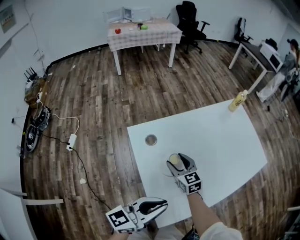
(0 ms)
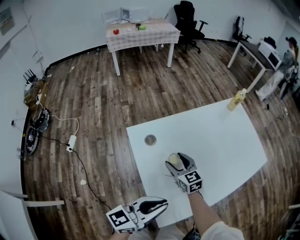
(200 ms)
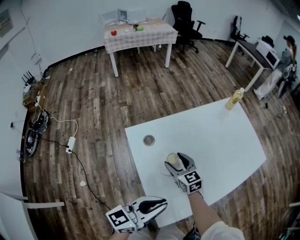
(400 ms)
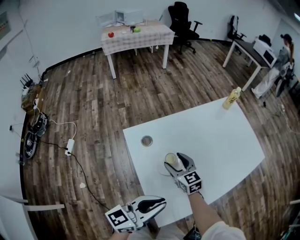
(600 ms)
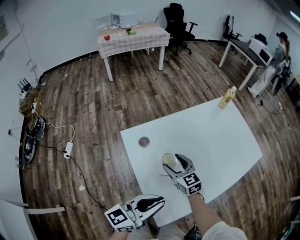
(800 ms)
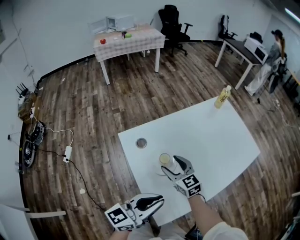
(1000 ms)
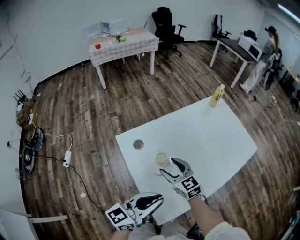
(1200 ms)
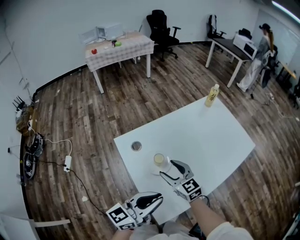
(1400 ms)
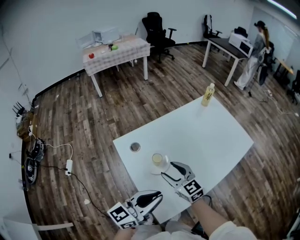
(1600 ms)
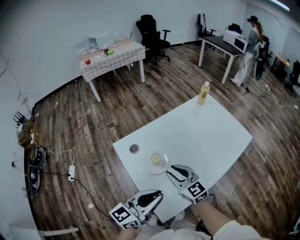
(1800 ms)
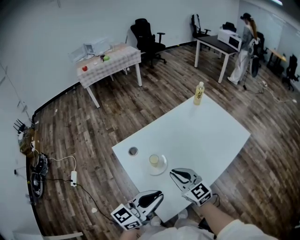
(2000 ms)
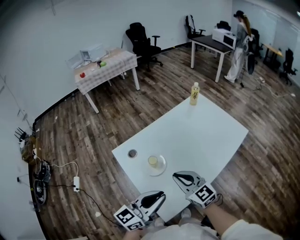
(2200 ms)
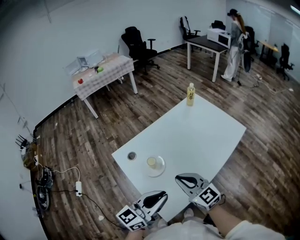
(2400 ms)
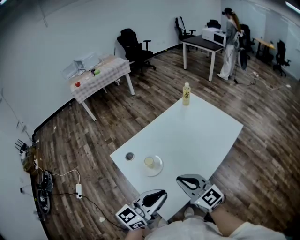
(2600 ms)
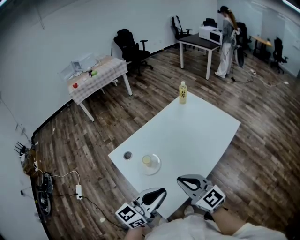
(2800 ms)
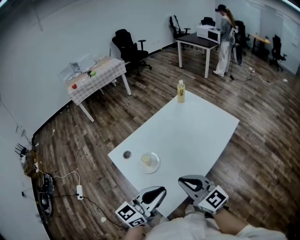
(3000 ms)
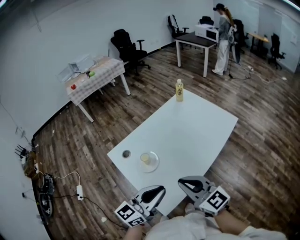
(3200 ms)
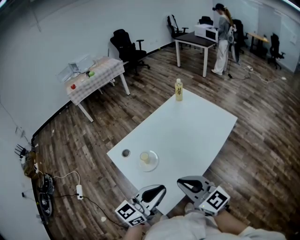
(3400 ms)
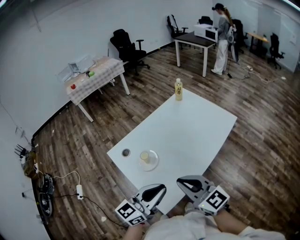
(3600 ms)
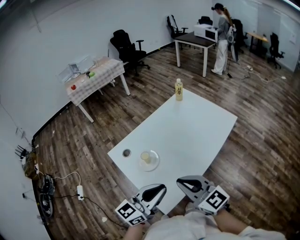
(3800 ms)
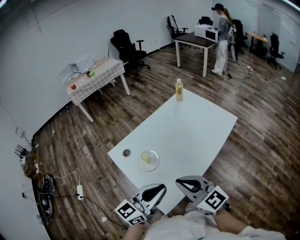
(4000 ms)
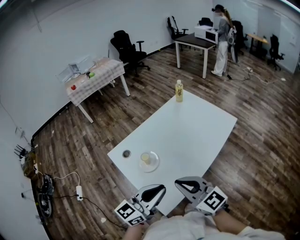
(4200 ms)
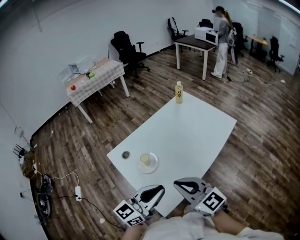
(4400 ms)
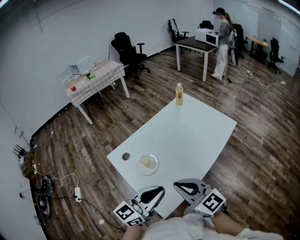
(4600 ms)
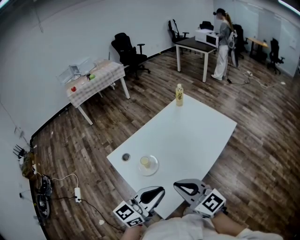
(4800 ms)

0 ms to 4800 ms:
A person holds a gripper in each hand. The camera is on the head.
0 ms to 1600 ms: The right gripper heads upward and backward, covering some 10 cm.
1600 ms to 3200 ms: The right gripper heads backward, upward and to the right, covering about 20 cm, and closes its fingers. Meanwhile the left gripper travels to the right by about 5 cm.
3200 ms to 4800 ms: The grippers make only small movements.

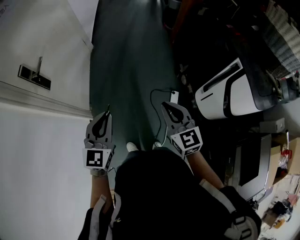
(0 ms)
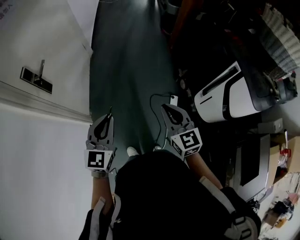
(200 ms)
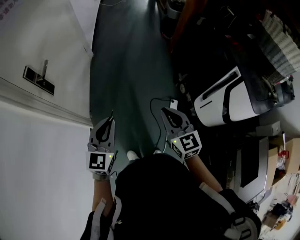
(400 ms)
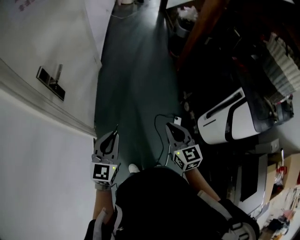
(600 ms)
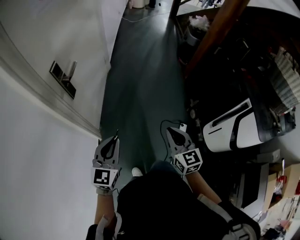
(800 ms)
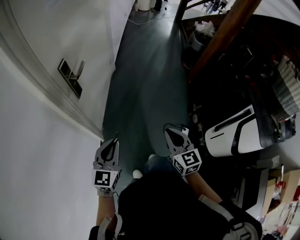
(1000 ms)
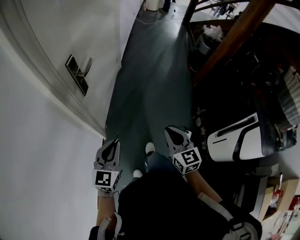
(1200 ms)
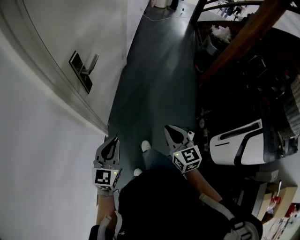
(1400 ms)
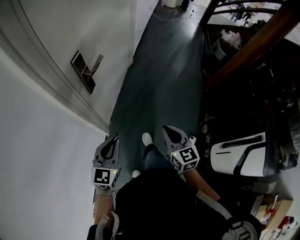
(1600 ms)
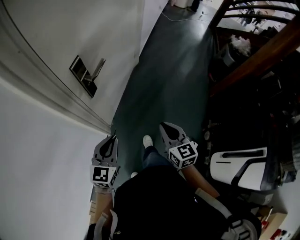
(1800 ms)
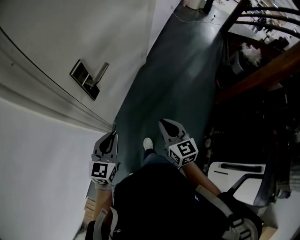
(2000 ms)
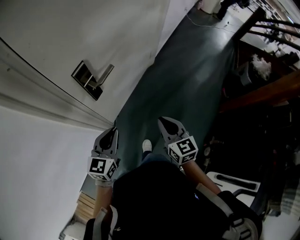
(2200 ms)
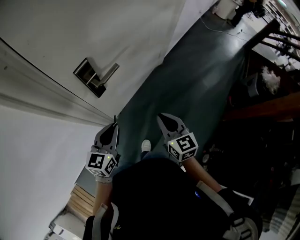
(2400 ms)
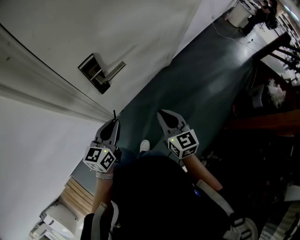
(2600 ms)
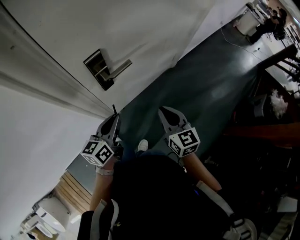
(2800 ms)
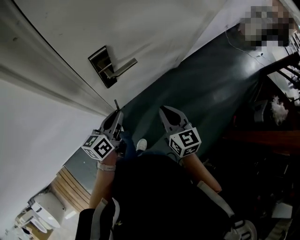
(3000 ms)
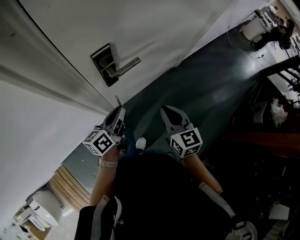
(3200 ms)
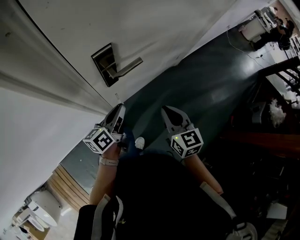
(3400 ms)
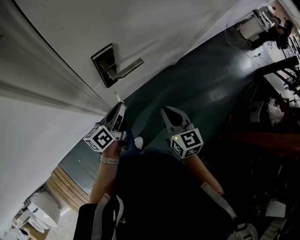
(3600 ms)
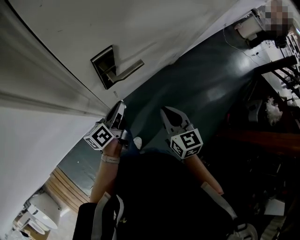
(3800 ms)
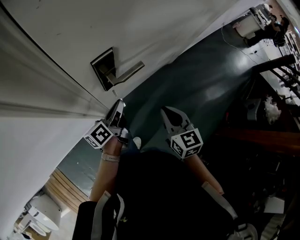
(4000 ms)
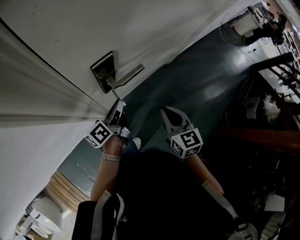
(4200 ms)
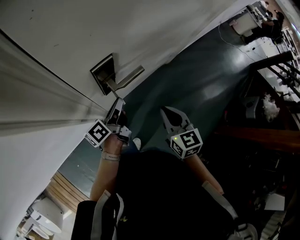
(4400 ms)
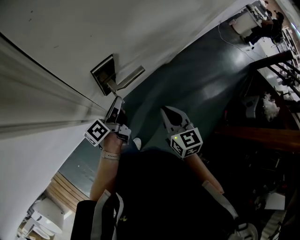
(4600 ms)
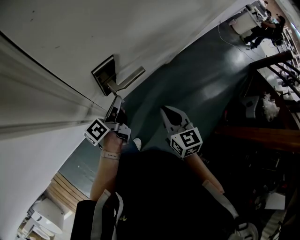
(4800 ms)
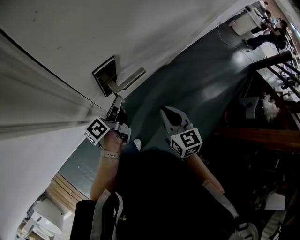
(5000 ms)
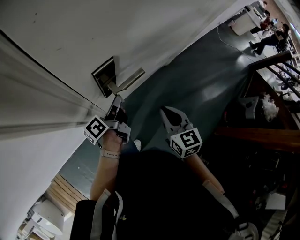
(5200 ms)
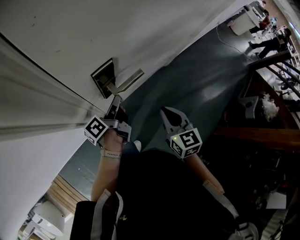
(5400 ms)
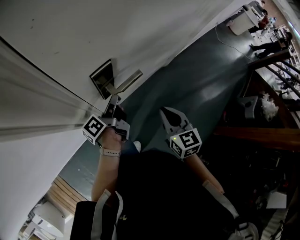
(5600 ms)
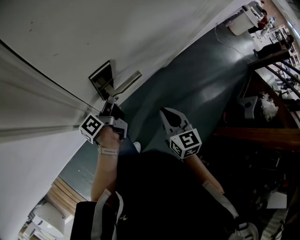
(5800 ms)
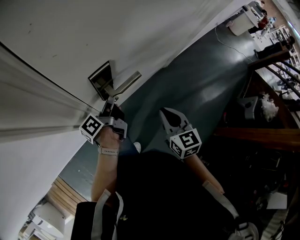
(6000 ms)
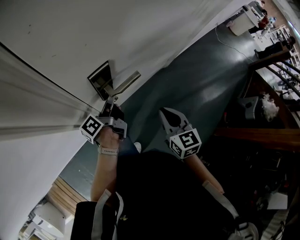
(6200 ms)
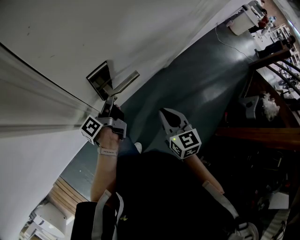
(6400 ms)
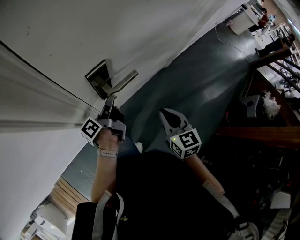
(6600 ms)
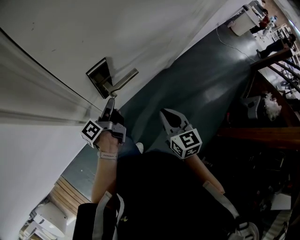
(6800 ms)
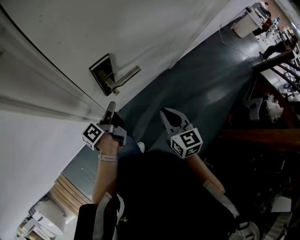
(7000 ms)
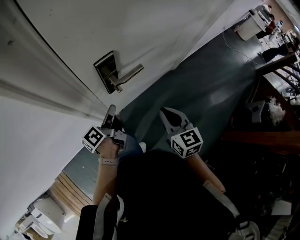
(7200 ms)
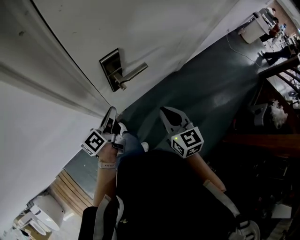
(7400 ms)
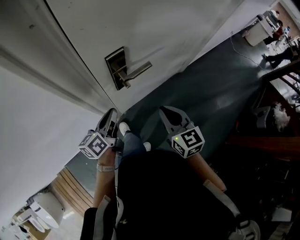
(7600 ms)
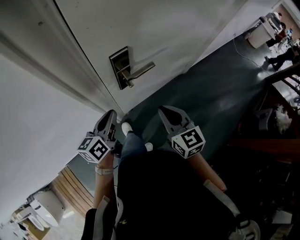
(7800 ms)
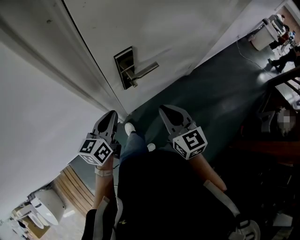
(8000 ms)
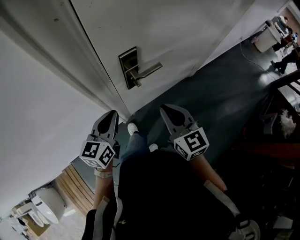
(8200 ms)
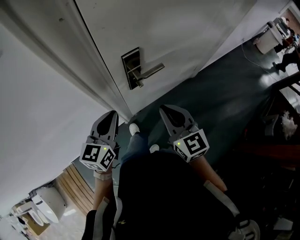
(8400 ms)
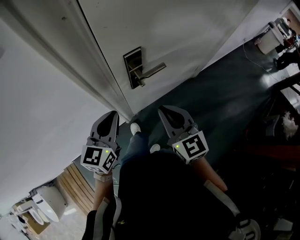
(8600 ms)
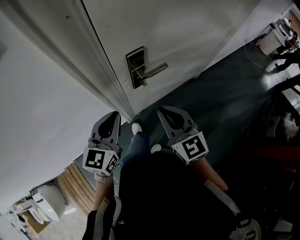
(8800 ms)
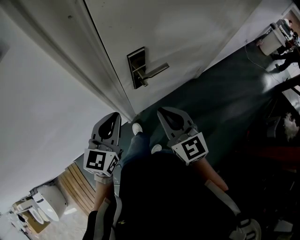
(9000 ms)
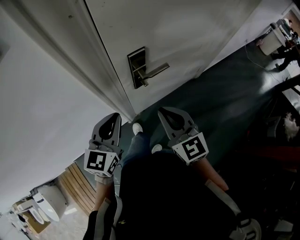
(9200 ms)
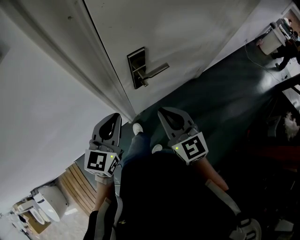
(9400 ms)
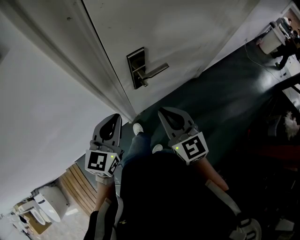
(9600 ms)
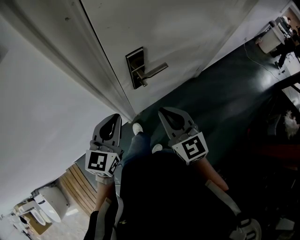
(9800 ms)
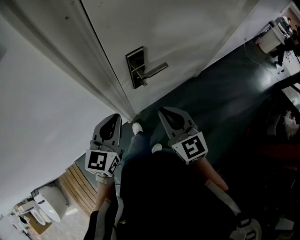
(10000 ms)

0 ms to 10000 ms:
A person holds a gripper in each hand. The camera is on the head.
0 ms to 1400 ms: The grippers both shift to the left by about 25 cm.
1400 ms to 2800 ms: The right gripper moves approximately 35 cm, and rotates approximately 40 degrees, while the left gripper moves some 25 cm, and changes its angle by about 50 degrees.
2800 ms to 4200 ms: The left gripper moves forward and downward, approximately 15 cm, and turns by about 40 degrees; the right gripper shifts about 5 cm forward.
4200 ms to 5800 ms: The left gripper heads forward, covering approximately 5 cm.
5800 ms to 7200 ms: The left gripper moves backward, some 10 cm.
7200 ms to 8600 ms: The right gripper goes approximately 15 cm upward and to the left. The left gripper heads upward and backward, covering roughly 20 cm, and rolls clockwise, seen from behind, by approximately 70 degrees.
8600 ms to 10000 ms: The grippers move only a little.

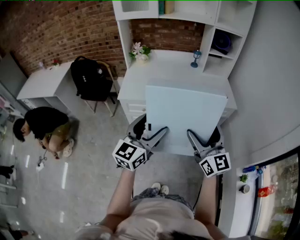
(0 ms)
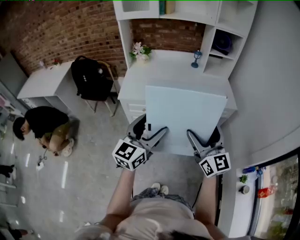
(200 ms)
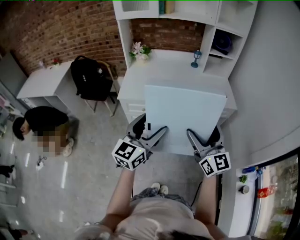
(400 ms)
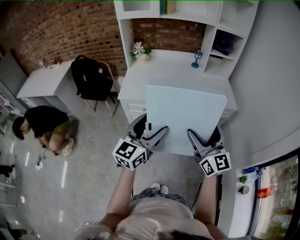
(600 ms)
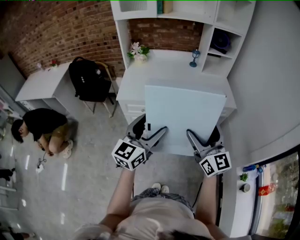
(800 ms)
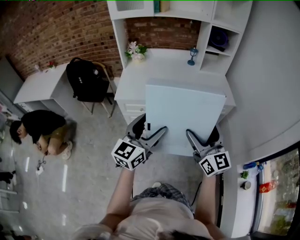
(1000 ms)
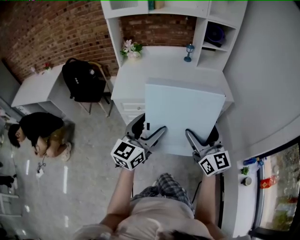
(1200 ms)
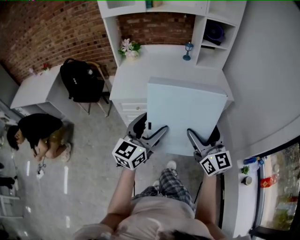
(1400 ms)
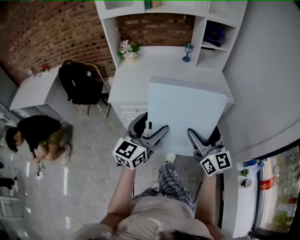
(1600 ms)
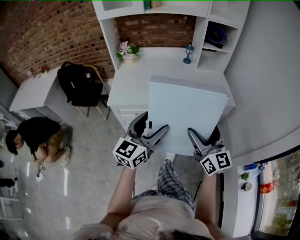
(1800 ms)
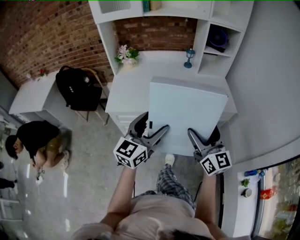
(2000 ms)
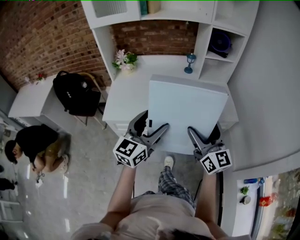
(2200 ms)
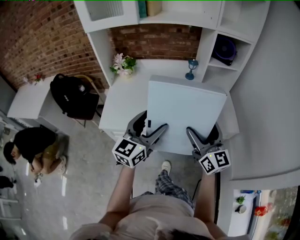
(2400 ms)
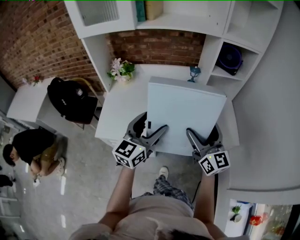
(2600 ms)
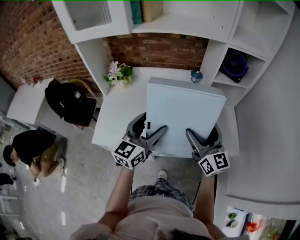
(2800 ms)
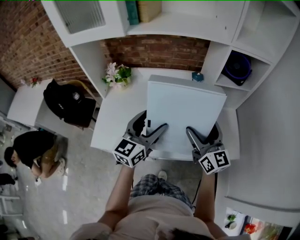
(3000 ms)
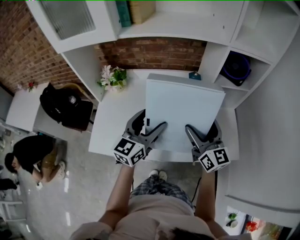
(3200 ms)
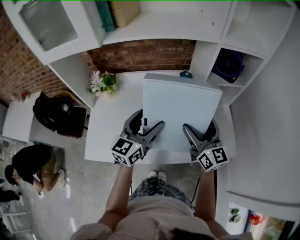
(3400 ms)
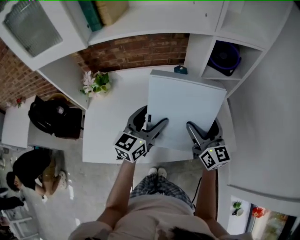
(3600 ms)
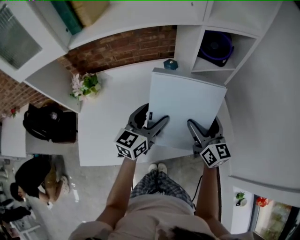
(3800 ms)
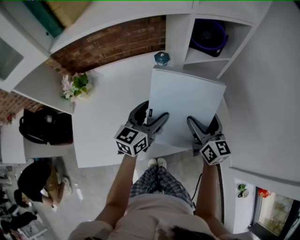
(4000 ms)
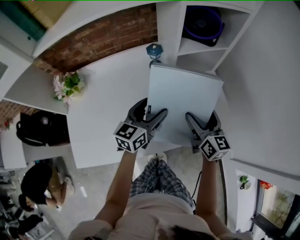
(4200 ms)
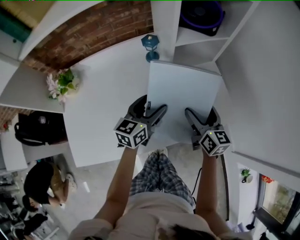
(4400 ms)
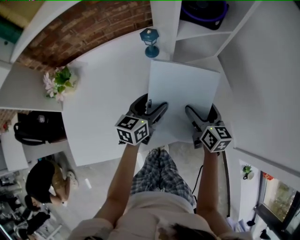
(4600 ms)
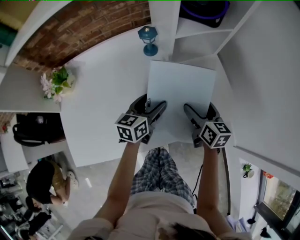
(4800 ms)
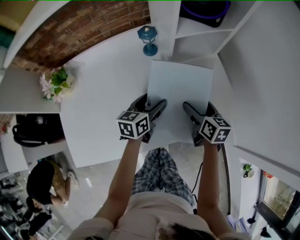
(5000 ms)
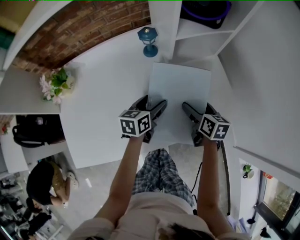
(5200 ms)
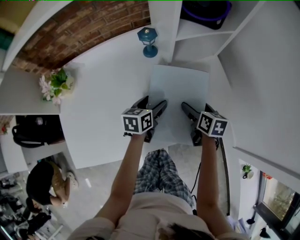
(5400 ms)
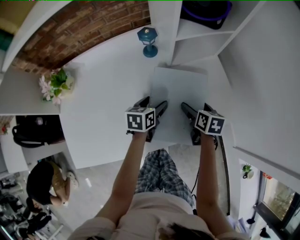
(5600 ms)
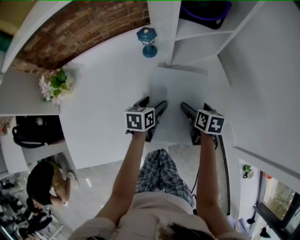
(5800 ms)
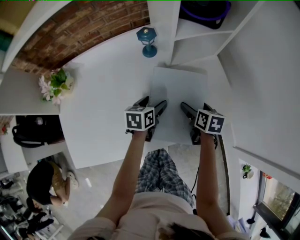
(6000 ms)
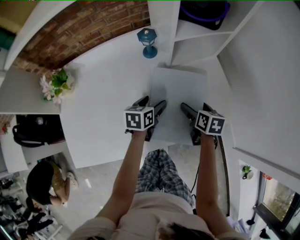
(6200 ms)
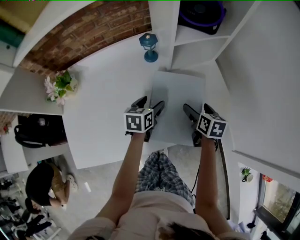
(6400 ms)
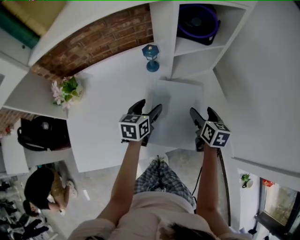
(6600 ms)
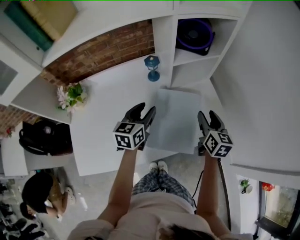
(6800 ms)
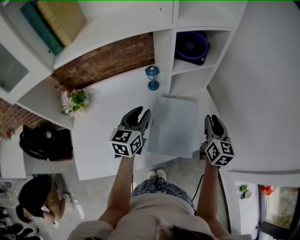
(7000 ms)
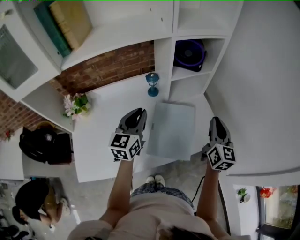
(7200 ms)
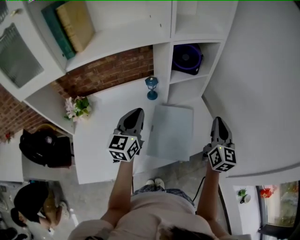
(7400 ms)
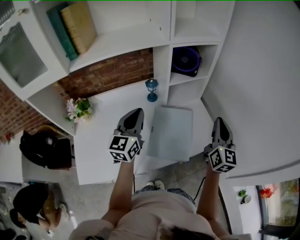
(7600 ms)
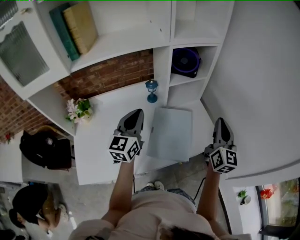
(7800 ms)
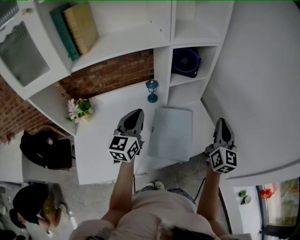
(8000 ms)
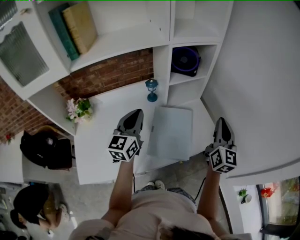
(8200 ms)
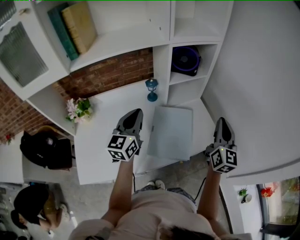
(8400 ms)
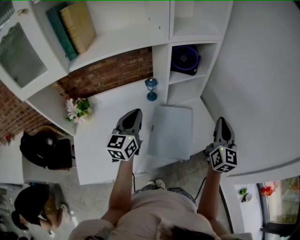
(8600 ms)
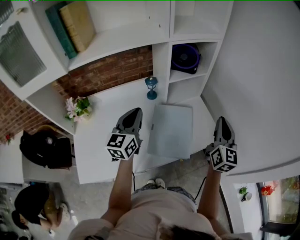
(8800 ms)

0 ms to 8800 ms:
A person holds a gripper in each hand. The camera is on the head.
0 ms to 1400 ms: There are only small adjustments of the grippers.
1400 ms to 3000 ms: The pair of grippers is taken forward, about 50 cm.
3000 ms to 4400 ms: Both grippers move downward, to the right and forward, roughly 25 cm. The left gripper changes its angle by about 30 degrees. Meanwhile the right gripper rotates some 40 degrees.
4400 ms to 5800 ms: The two grippers go approximately 15 cm downward. The left gripper swivels some 30 degrees; the right gripper points its fingers roughly 30 degrees further downward.
5800 ms to 7400 ms: Both grippers move upward, roughly 30 cm. The left gripper angles its fingers upward, by approximately 40 degrees, and closes, while the right gripper points its fingers roughly 50 degrees further upward, and closes up.
7400 ms to 8800 ms: The grippers stay close to where they were, moving slightly.
